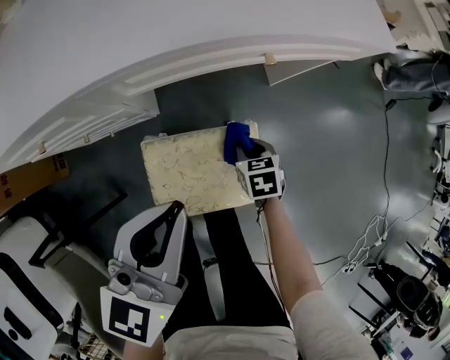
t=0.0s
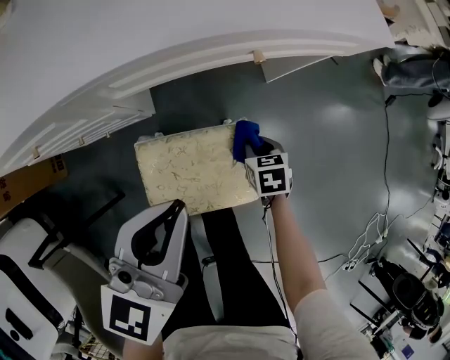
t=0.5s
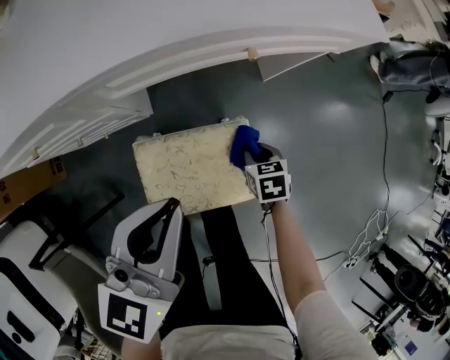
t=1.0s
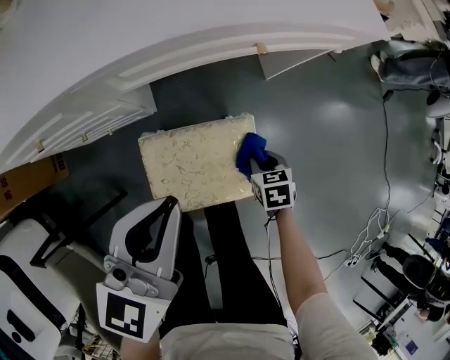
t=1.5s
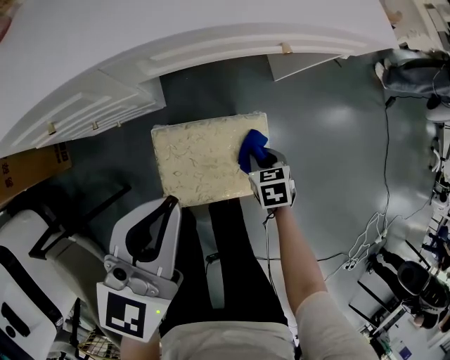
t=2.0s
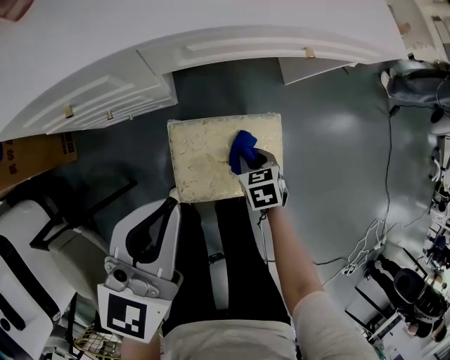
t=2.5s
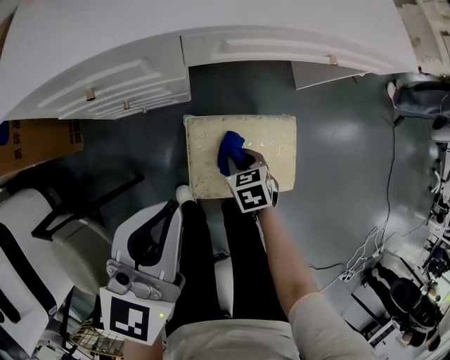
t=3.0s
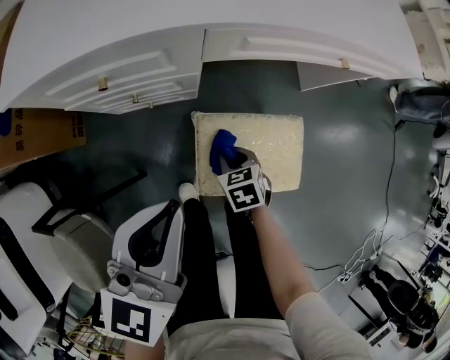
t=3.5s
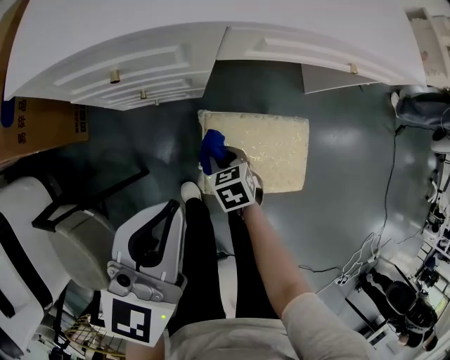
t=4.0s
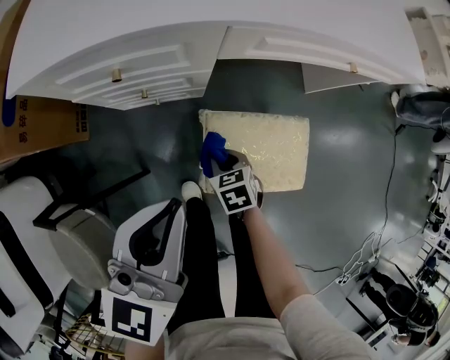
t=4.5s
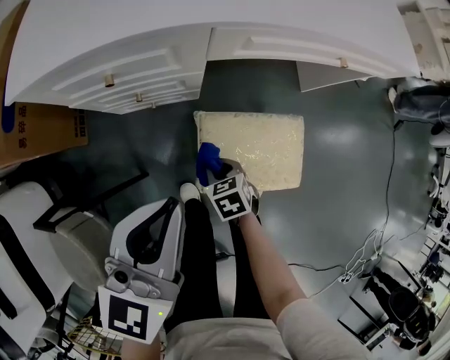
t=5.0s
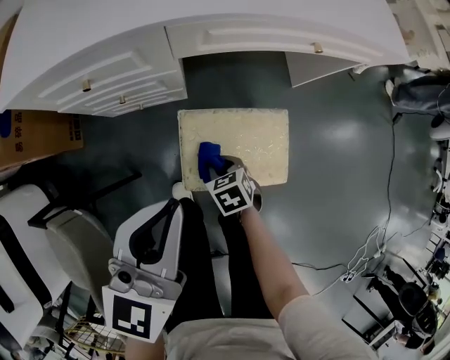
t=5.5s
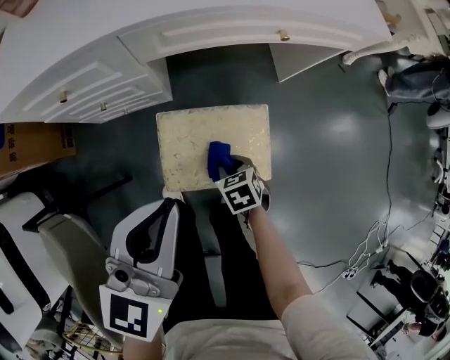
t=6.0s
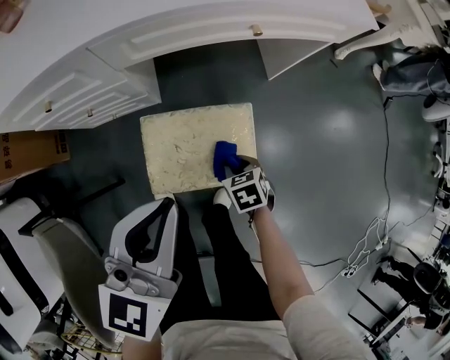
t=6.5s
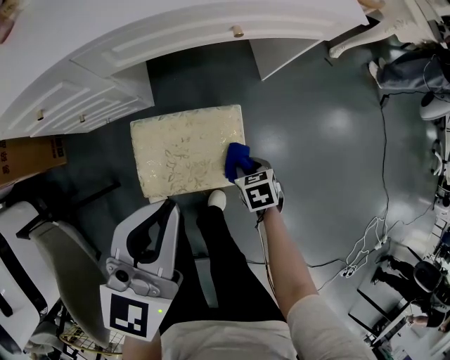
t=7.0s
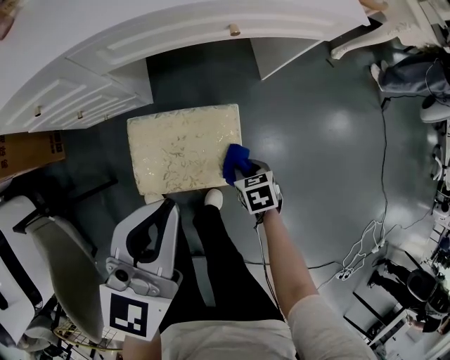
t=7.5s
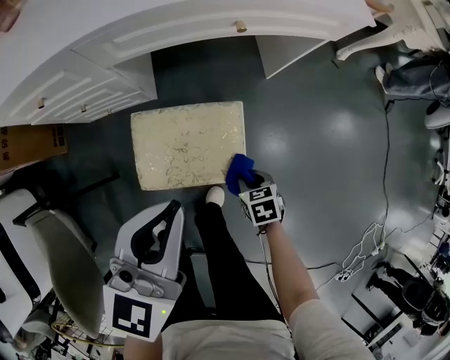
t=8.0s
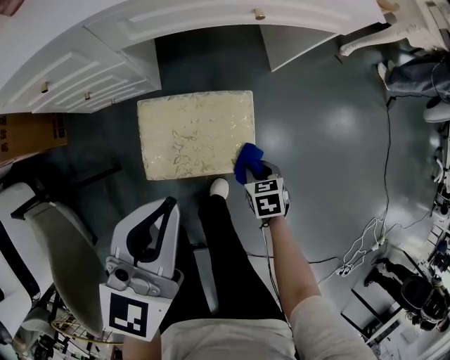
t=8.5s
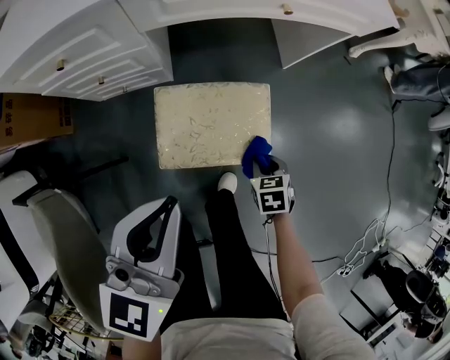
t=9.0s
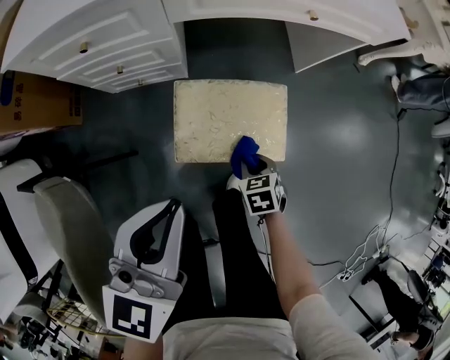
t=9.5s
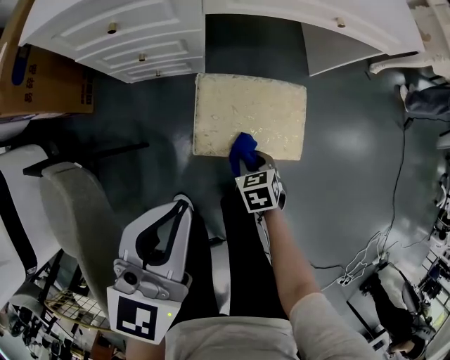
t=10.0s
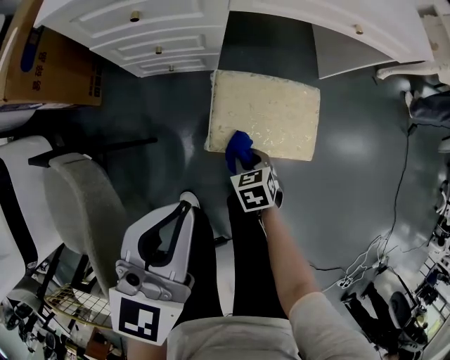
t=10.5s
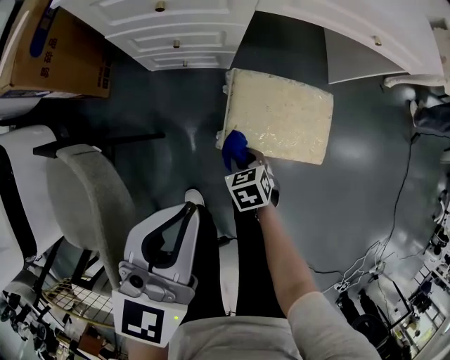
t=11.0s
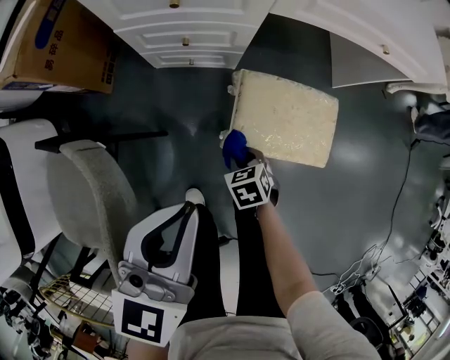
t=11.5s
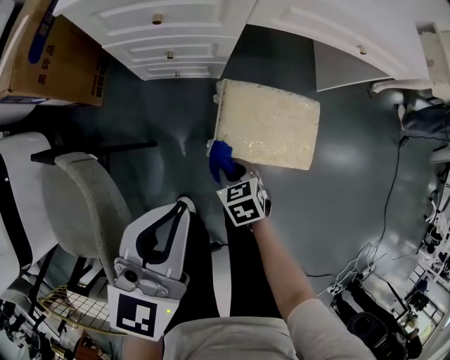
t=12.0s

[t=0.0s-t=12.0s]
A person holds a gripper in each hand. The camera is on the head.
t=0.0s to t=2.0s: The right gripper goes some 5 cm backward. The left gripper moves about 5 cm.
t=2.0s to t=4.0s: The right gripper travels to the left by approximately 25 cm. The left gripper is displaced to the left by roughly 15 cm.
t=4.0s to t=6.0s: The right gripper travels to the right and backward by about 20 cm. The left gripper shifts roughly 15 cm to the right.
t=6.0s to t=8.0s: Both grippers travel together to the right, about 15 cm.
t=8.0s to t=10.0s: The left gripper heads to the left and backward, covering approximately 20 cm; the right gripper is displaced to the left by about 20 cm.
t=10.0s to t=12.0s: The right gripper heads to the left, covering roughly 15 cm. The left gripper is displaced to the left by roughly 10 cm.

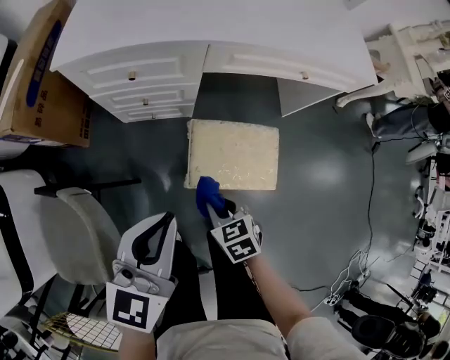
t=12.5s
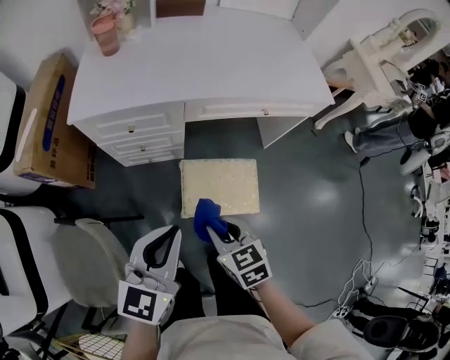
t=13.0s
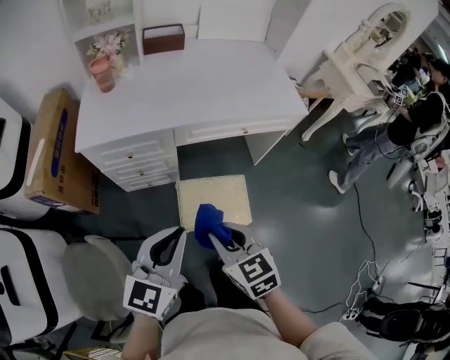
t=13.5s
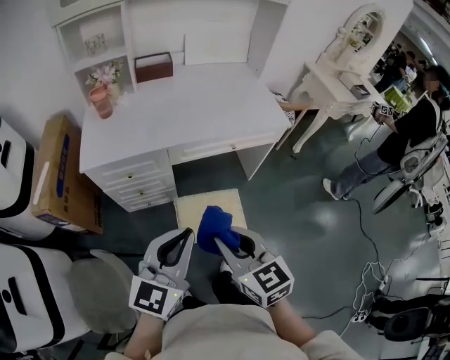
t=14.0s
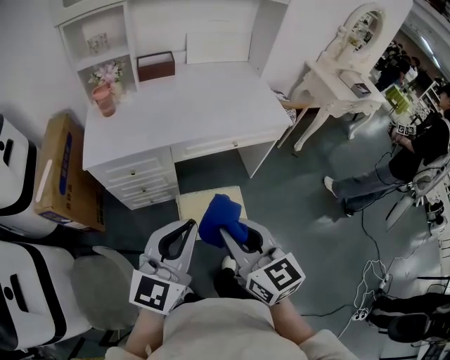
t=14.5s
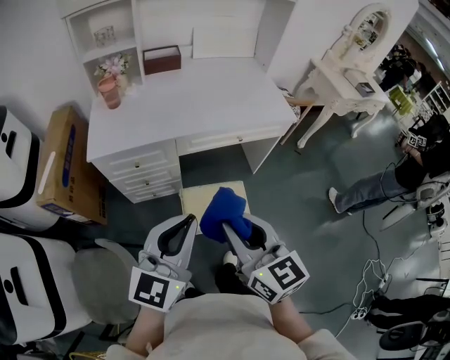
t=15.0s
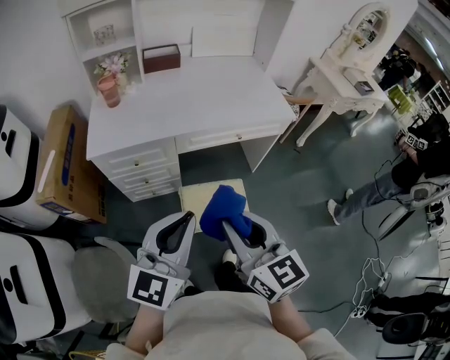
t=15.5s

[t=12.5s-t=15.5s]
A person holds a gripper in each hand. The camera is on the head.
t=12.5s to t=14.0s: The left gripper travels upward and to the right by about 25 cm; the right gripper travels upward by some 40 cm, and angles its fingers upward, by some 40 degrees.
t=14.0s to t=15.5s: The right gripper is displaced upward by about 5 cm.

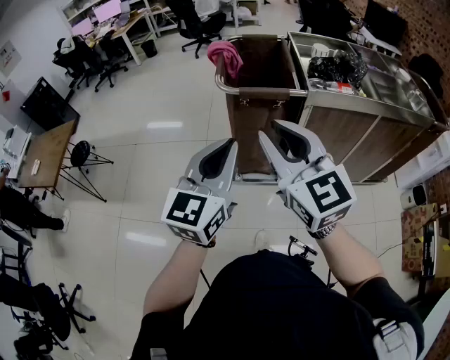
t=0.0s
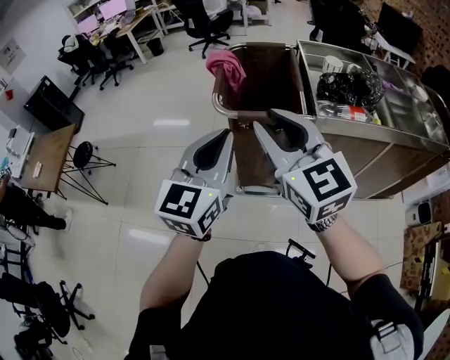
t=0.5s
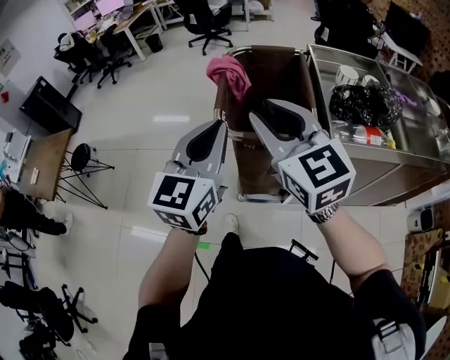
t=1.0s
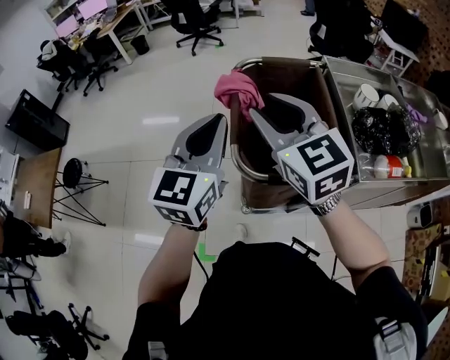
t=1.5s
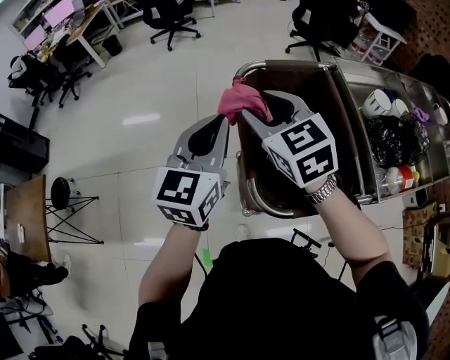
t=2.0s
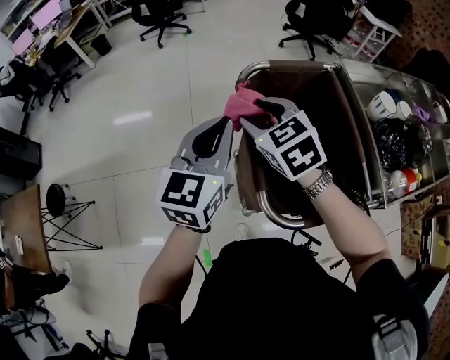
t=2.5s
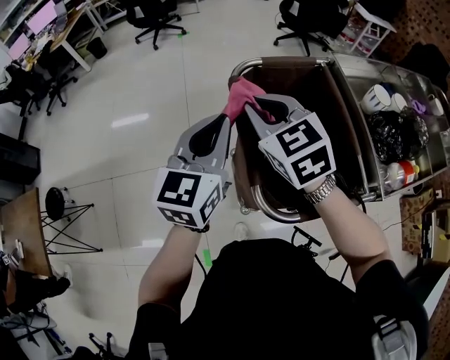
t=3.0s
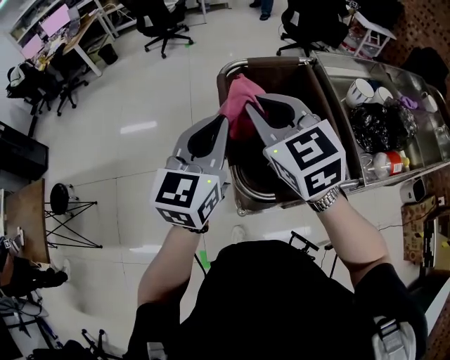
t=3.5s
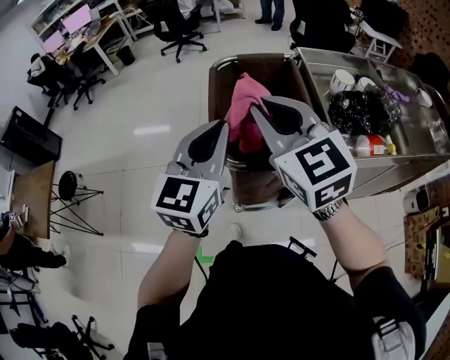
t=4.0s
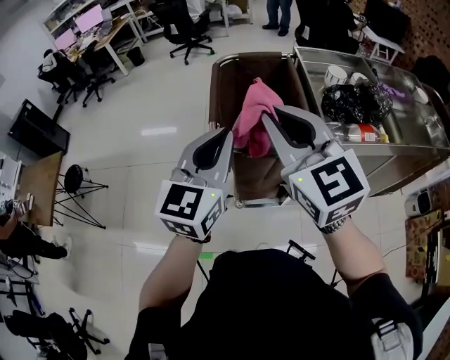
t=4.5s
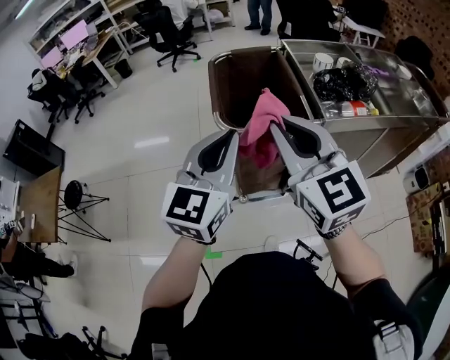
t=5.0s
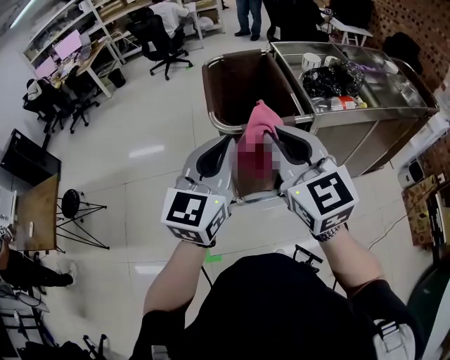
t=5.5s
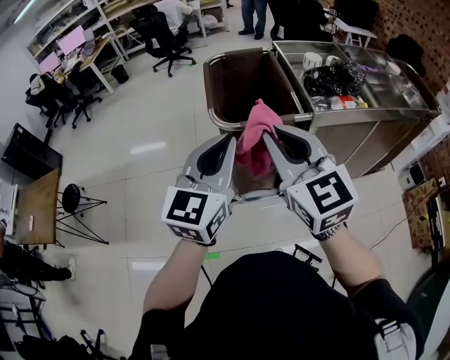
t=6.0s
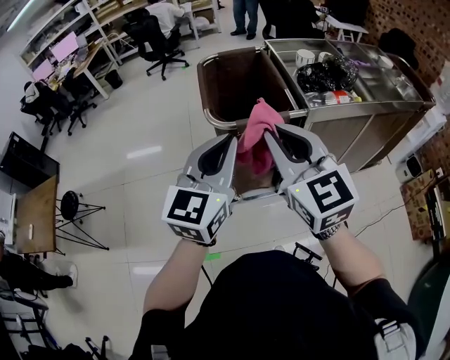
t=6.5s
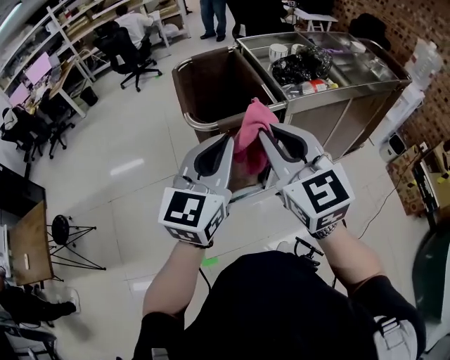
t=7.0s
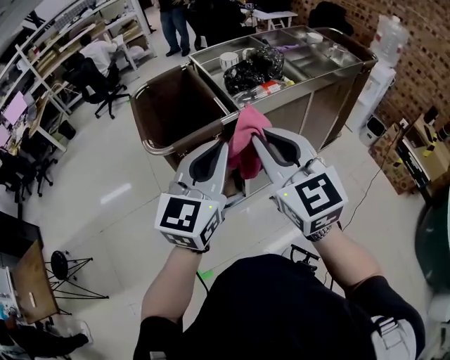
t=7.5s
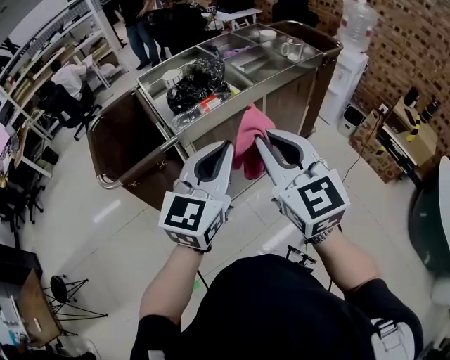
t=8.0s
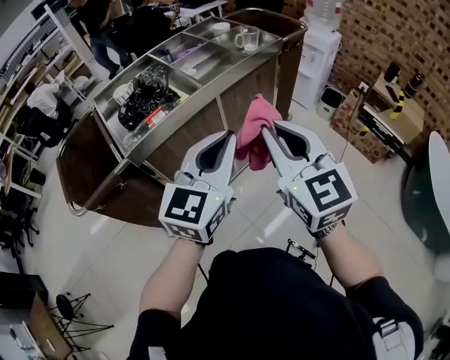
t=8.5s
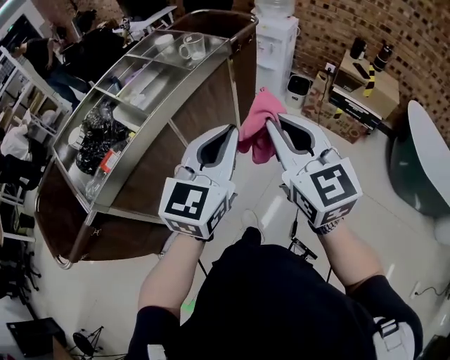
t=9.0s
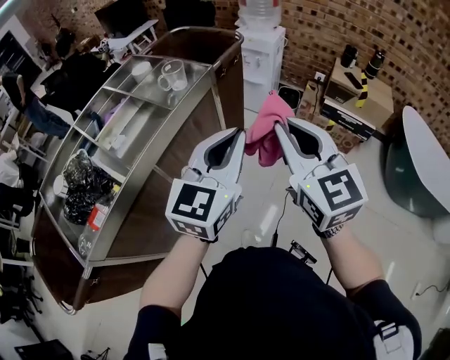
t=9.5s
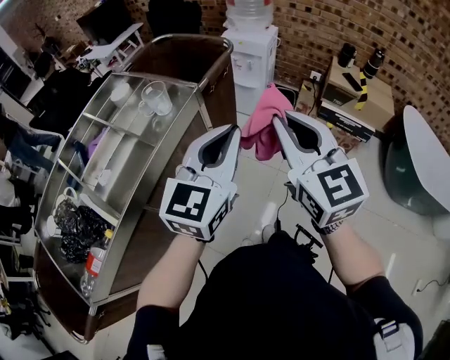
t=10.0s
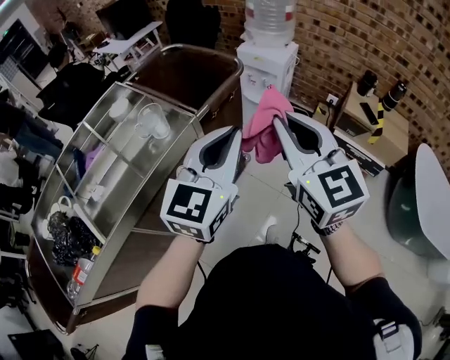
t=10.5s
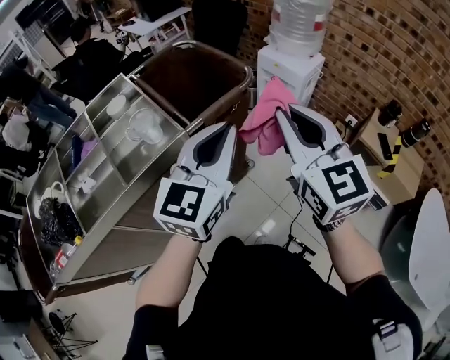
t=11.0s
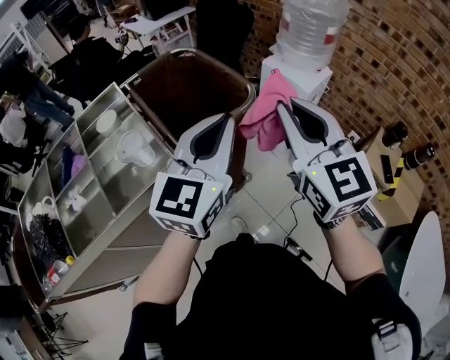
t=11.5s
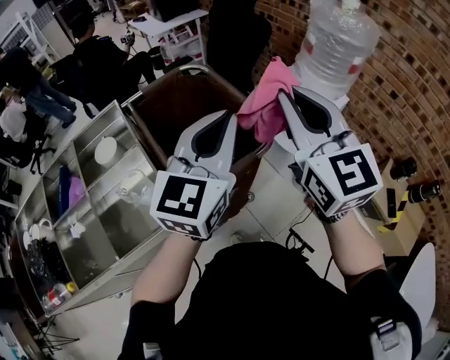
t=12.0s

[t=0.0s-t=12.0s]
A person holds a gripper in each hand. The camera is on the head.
t=0.0s to t=2.0s: The two grippers travel together, forward, roughly 60 cm. The right gripper changes its angle by some 30 degrees, and opens its fingers.
t=2.0s to t=4.0s: The left gripper moves backward and to the right, about 20 cm; the right gripper shifts approximately 25 cm backward, to the right and upward, and closes.
t=4.0s to t=6.0s: The grippers both shift backward by roughly 20 cm.
t=6.0s to t=8.0s: The right gripper shifts by some 35 cm, and changes its angle by roughly 30 degrees; the left gripper ends up about 35 cm from where it was, and changes its angle by approximately 30 degrees.
t=8.0s to t=10.0s: The pair of grippers is taken roughly 60 cm. The left gripper turns by roughly 30 degrees; the right gripper swivels approximately 30 degrees.
t=10.0s to t=12.0s: The pair of grippers is taken approximately 40 cm. The left gripper changes its angle by about 30 degrees. Meanwhile the right gripper rotates some 20 degrees.
